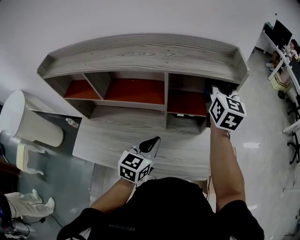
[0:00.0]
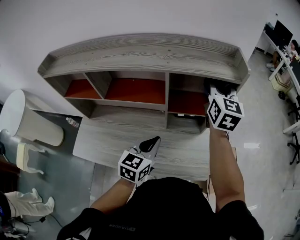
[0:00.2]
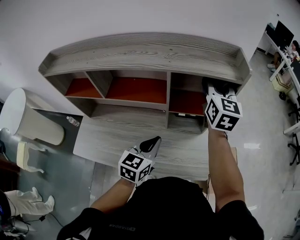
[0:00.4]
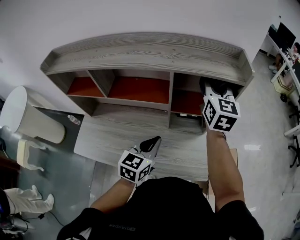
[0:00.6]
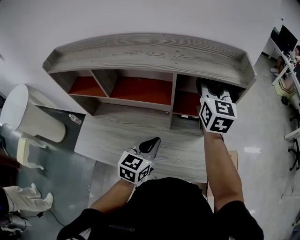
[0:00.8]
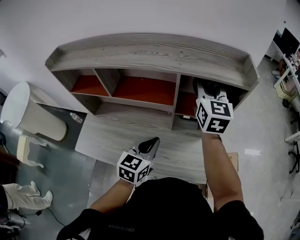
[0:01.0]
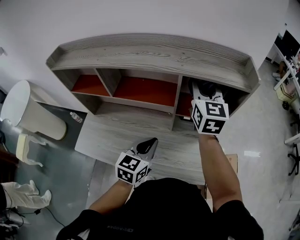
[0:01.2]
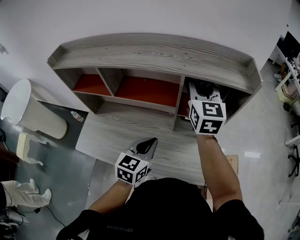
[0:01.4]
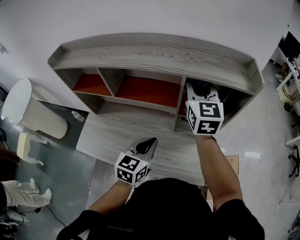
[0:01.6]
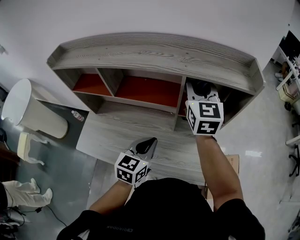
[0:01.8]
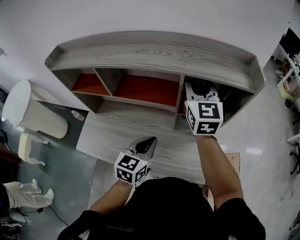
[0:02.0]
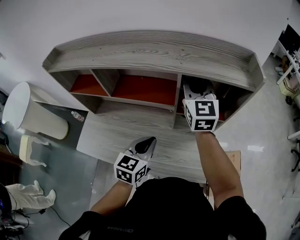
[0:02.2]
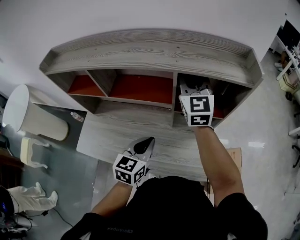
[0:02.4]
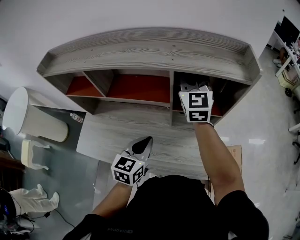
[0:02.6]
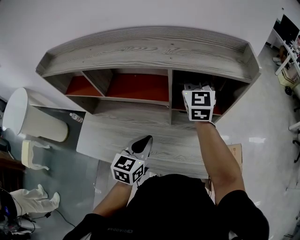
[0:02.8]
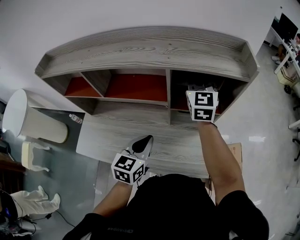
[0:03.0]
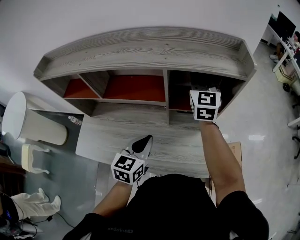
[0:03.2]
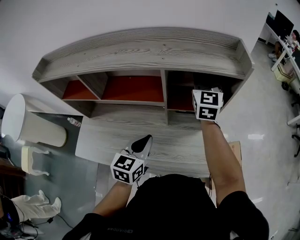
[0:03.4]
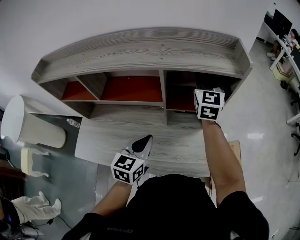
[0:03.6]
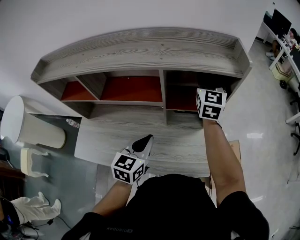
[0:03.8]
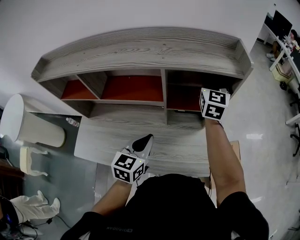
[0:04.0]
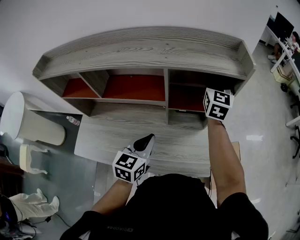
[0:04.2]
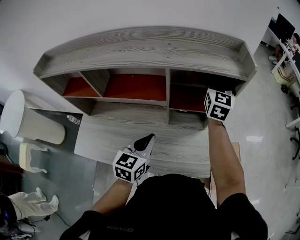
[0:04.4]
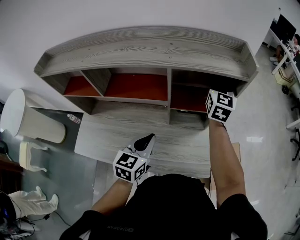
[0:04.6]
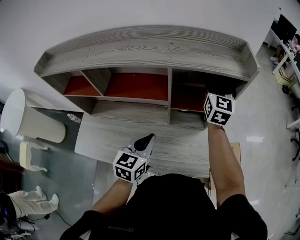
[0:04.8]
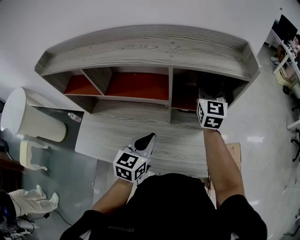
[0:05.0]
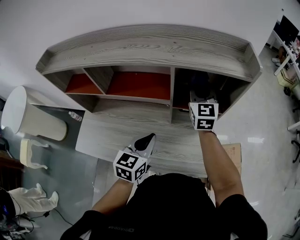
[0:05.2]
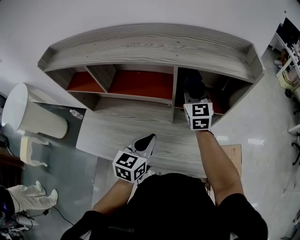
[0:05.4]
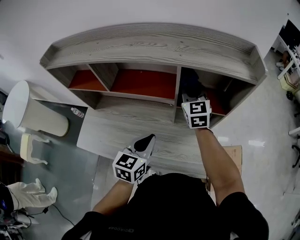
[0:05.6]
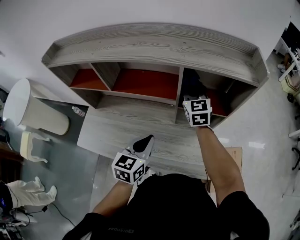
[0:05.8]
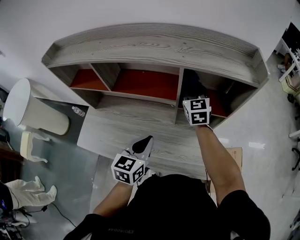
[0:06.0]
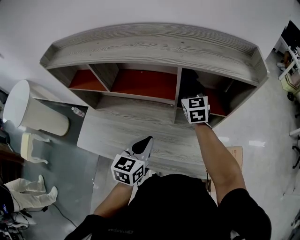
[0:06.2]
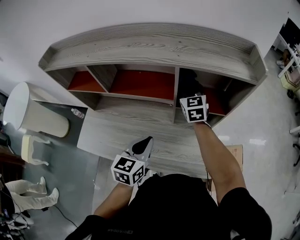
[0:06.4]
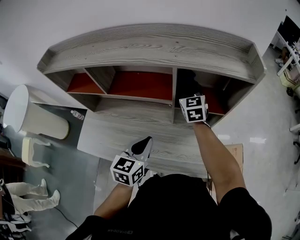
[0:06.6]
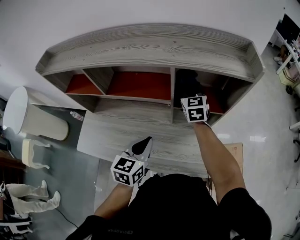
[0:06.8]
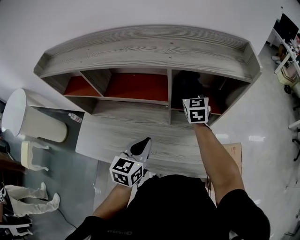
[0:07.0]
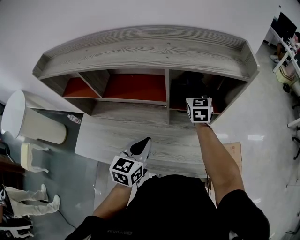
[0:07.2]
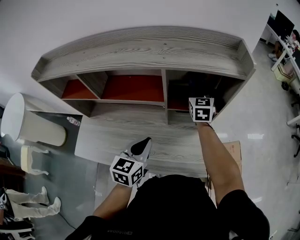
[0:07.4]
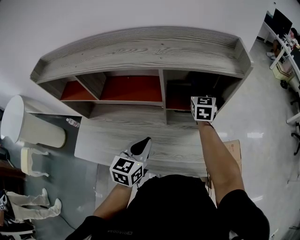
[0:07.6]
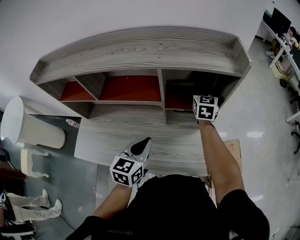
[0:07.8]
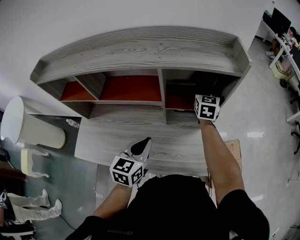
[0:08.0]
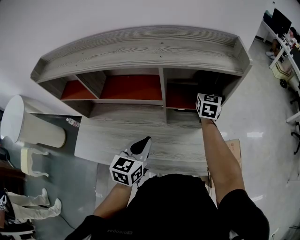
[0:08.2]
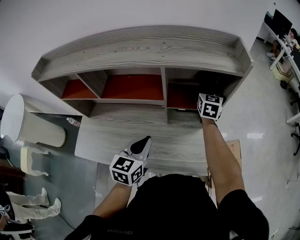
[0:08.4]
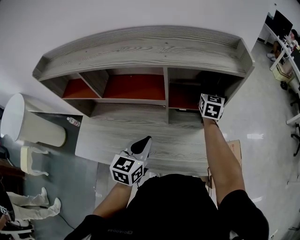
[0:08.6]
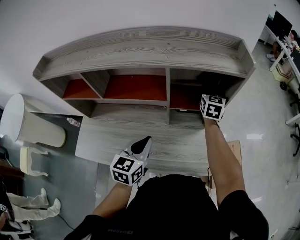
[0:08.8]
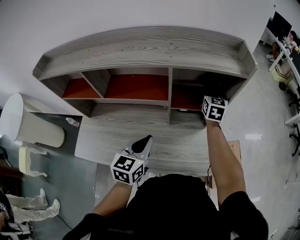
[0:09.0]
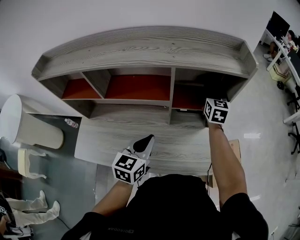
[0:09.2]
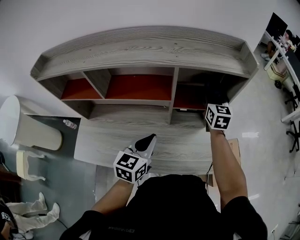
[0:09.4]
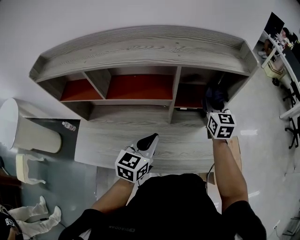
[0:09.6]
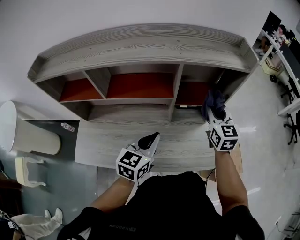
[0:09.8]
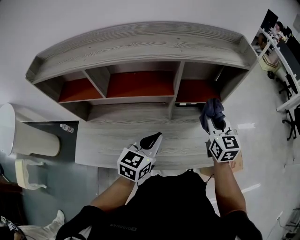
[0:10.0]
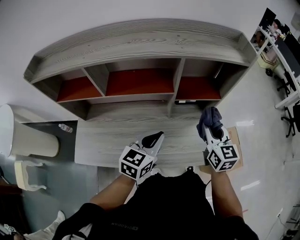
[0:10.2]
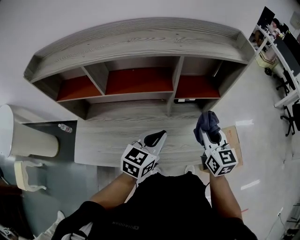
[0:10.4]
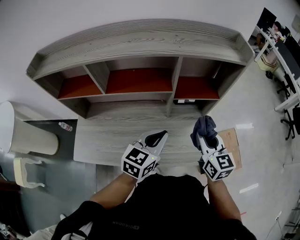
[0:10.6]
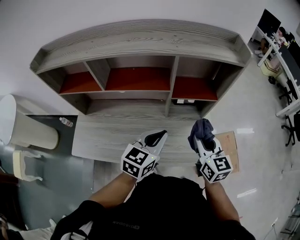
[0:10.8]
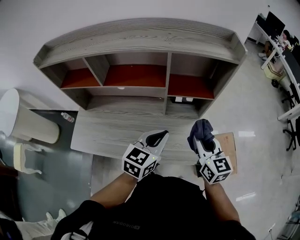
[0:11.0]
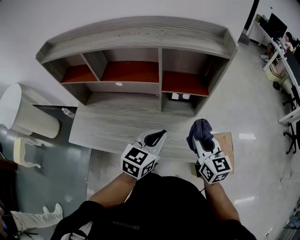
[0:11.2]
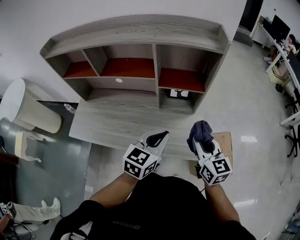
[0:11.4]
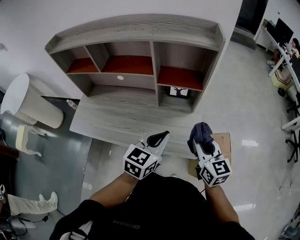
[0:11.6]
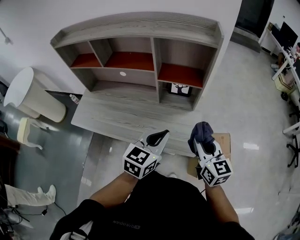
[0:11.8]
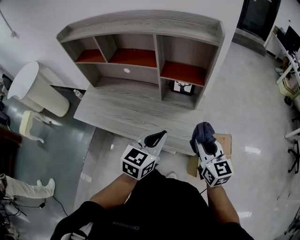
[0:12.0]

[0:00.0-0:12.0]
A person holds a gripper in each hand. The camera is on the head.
0:00.0 to 0:01.6: The left gripper goes roughly 5 cm to the left. The right gripper goes roughly 15 cm to the left.
0:01.6 to 0:03.0: The right gripper goes approximately 5 cm forward and to the right.
0:03.0 to 0:04.4: The right gripper heads to the right, covering about 10 cm.
0:04.4 to 0:06.0: The right gripper heads to the left and downward, covering approximately 20 cm, and rotates some 30 degrees.
0:06.0 to 0:07.6: The right gripper shifts approximately 10 cm to the right.
0:07.6 to 0:09.0: The grippers stay close to where they were, moving slightly.
0:09.0 to 0:10.4: The right gripper shifts about 25 cm backward.
0:10.4 to 0:12.0: The grippers both shift to the right and backward by approximately 20 cm. The right gripper swivels about 20 degrees.

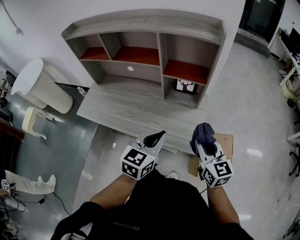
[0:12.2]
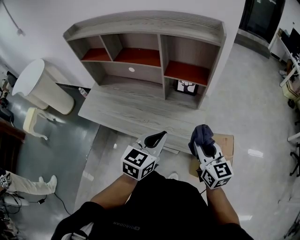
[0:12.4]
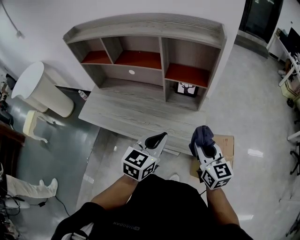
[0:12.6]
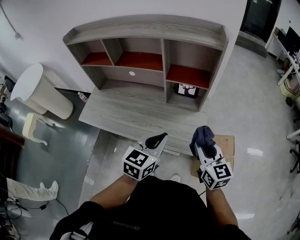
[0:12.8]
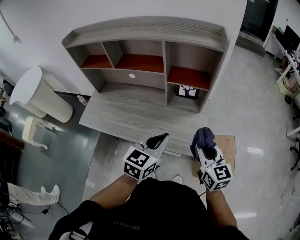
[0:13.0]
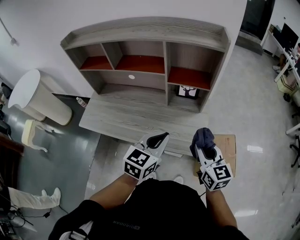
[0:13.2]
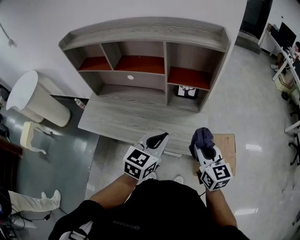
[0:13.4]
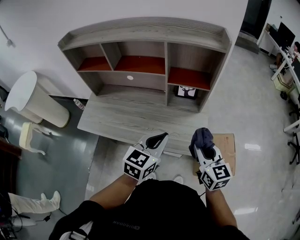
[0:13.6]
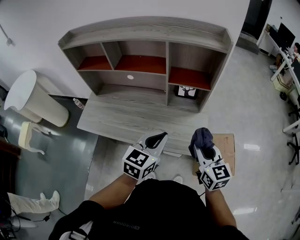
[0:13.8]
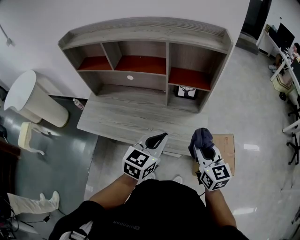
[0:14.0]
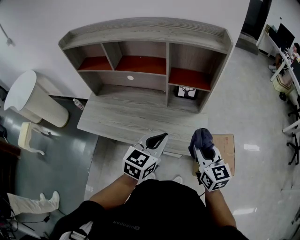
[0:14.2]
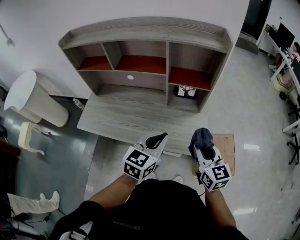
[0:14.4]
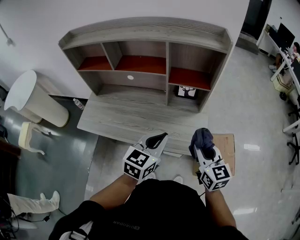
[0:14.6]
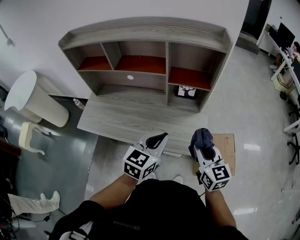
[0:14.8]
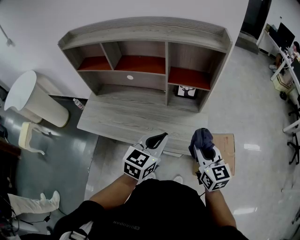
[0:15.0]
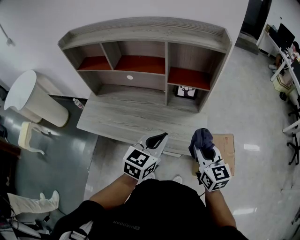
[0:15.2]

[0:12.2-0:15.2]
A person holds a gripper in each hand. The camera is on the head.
0:12.2 to 0:13.8: Both grippers travel together to the left, approximately 5 cm.
0:13.8 to 0:15.2: Both grippers stay put.

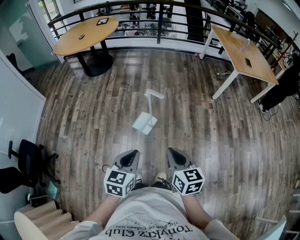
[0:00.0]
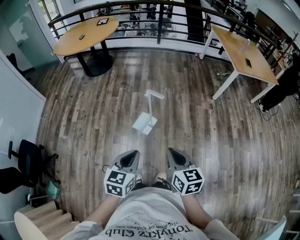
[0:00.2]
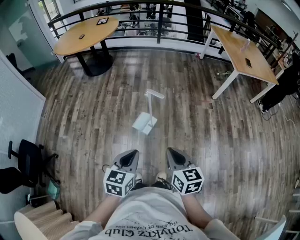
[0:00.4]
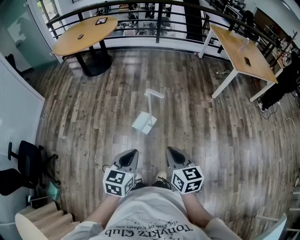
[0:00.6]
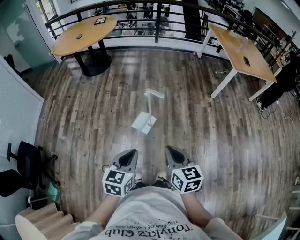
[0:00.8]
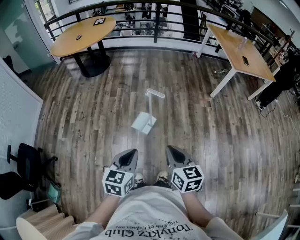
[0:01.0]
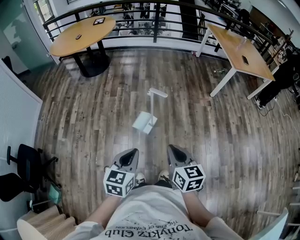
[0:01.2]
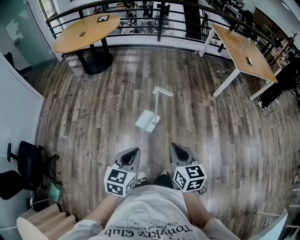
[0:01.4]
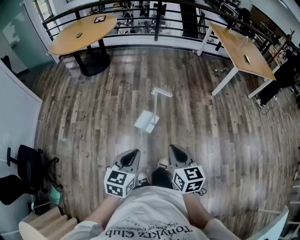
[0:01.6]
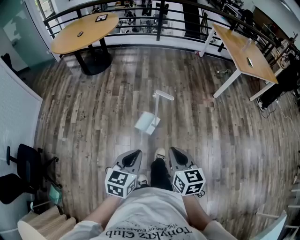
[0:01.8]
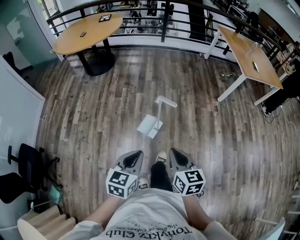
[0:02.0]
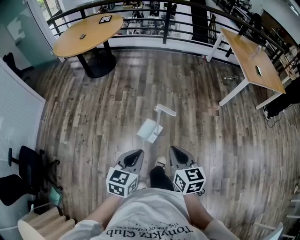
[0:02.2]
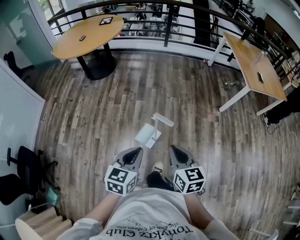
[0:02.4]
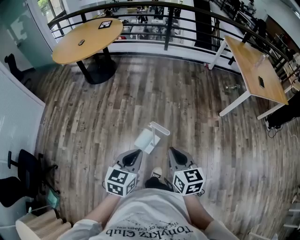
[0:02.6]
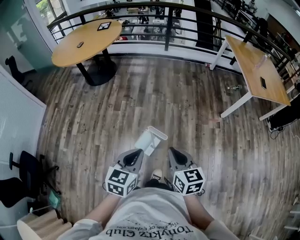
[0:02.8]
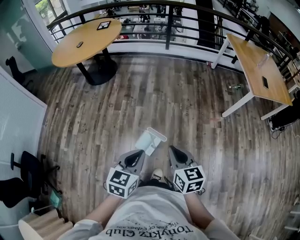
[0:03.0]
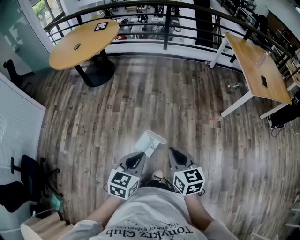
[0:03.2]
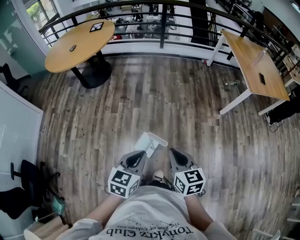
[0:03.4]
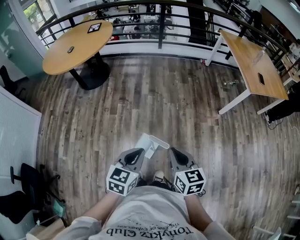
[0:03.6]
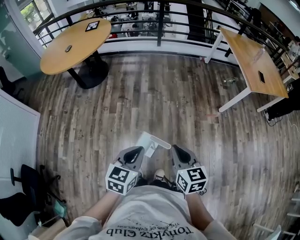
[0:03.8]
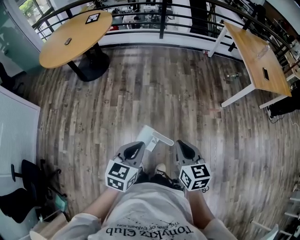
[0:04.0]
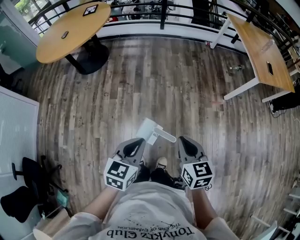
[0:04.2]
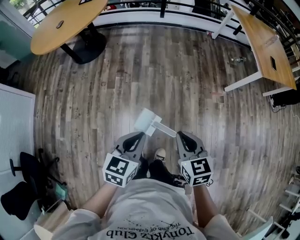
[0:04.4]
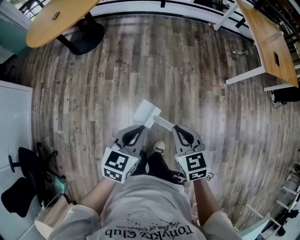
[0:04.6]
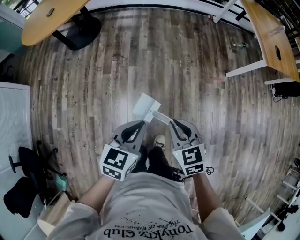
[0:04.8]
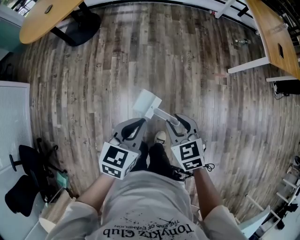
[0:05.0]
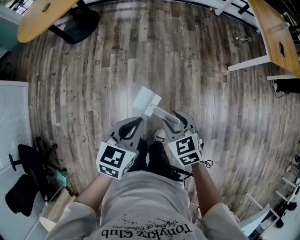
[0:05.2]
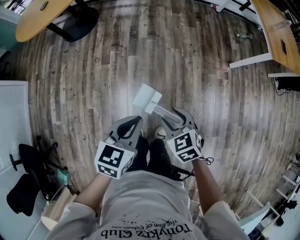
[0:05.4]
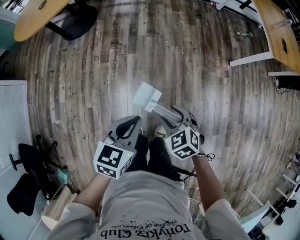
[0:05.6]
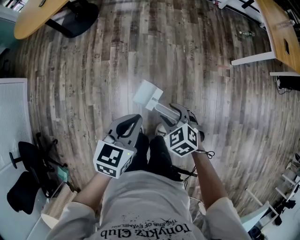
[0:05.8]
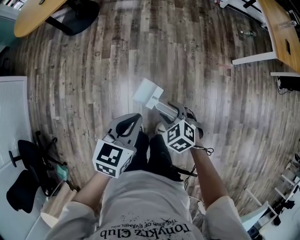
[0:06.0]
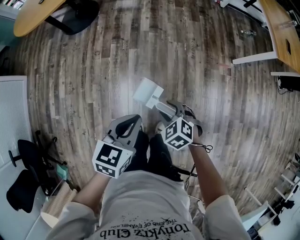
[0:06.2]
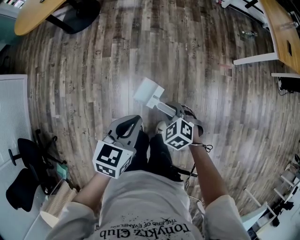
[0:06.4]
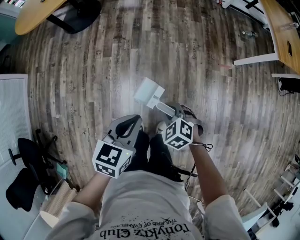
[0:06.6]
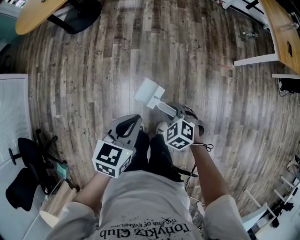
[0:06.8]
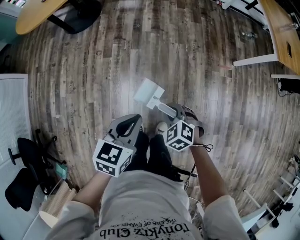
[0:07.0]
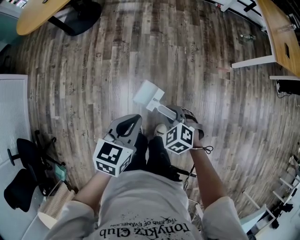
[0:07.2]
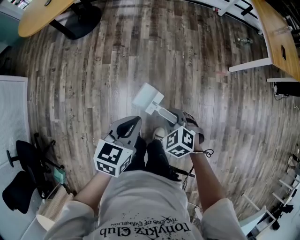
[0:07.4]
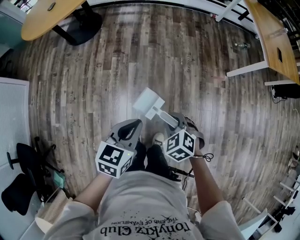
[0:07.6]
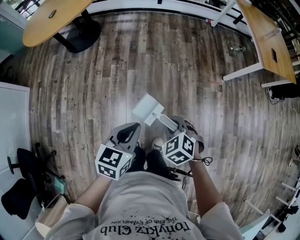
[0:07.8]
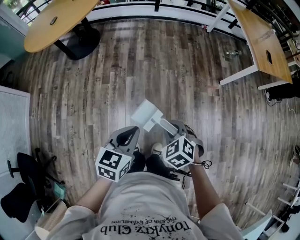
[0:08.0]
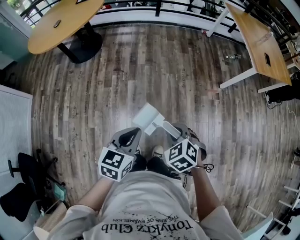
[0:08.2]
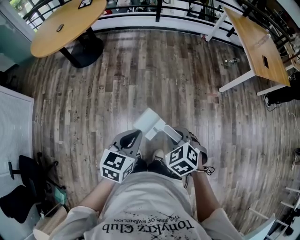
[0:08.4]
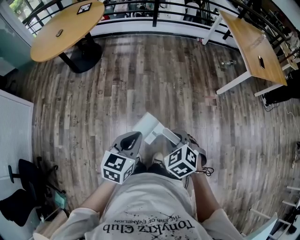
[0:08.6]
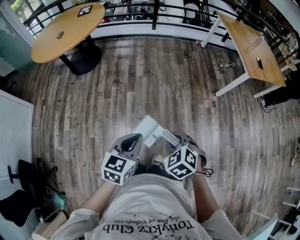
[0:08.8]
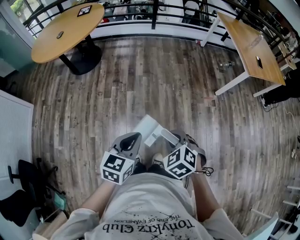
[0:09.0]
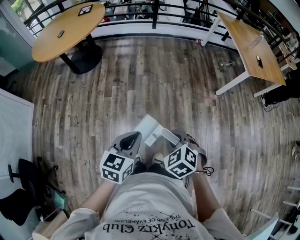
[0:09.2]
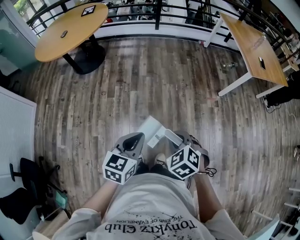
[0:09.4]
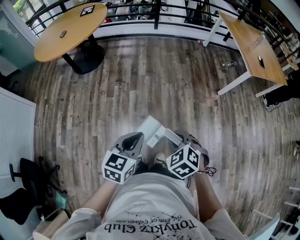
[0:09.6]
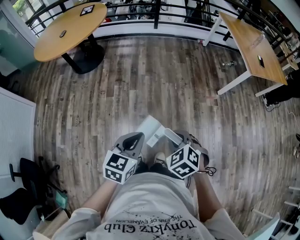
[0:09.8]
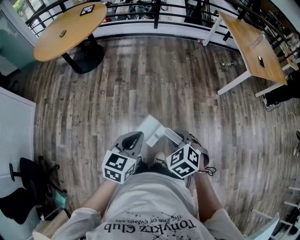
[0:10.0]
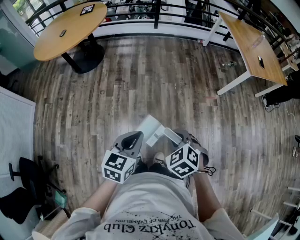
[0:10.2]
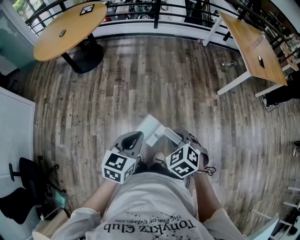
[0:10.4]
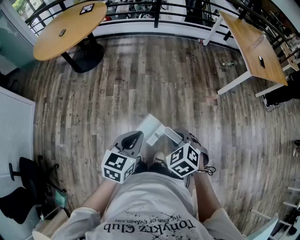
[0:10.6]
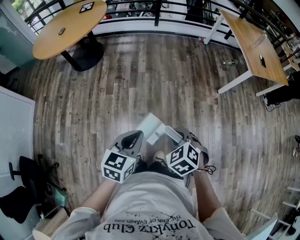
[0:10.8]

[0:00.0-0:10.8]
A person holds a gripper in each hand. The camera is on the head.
0:00.0 to 0:01.6: Both grippers travel together to the left, some 5 cm.
0:01.6 to 0:03.0: The two grippers go approximately 30 cm forward.
0:03.0 to 0:04.6: The two grippers go some 15 cm forward and downward.
0:04.6 to 0:06.2: The right gripper goes about 20 cm downward, changes its angle by roughly 40 degrees, and opens up. Meanwhile the left gripper goes about 5 cm downward.
0:06.2 to 0:07.8: The right gripper shifts roughly 10 cm upward, and closes up.
0:07.8 to 0:09.2: The left gripper moves backward and upward, roughly 10 cm, while the right gripper goes about 10 cm upward and backward.
0:09.2 to 0:10.8: The grippers move only a little.
